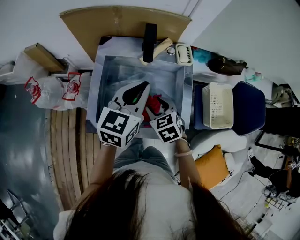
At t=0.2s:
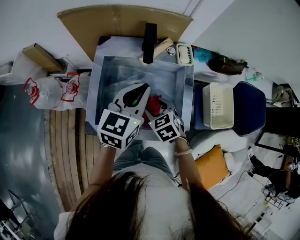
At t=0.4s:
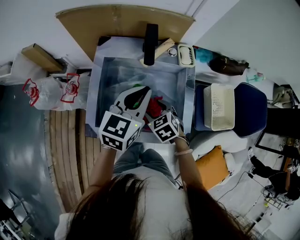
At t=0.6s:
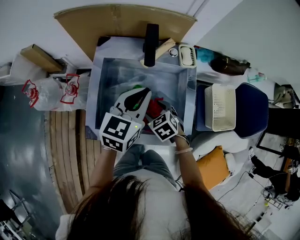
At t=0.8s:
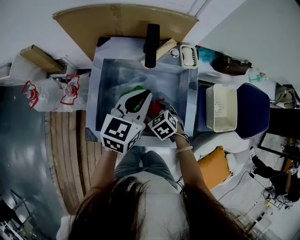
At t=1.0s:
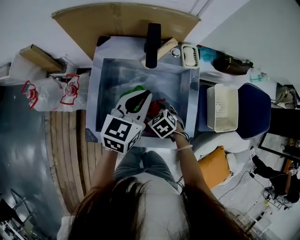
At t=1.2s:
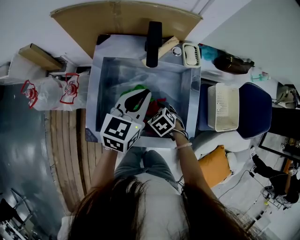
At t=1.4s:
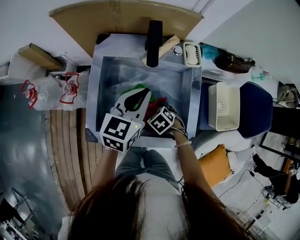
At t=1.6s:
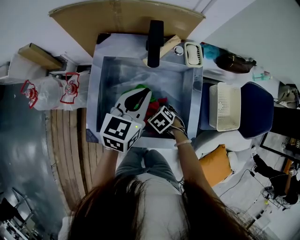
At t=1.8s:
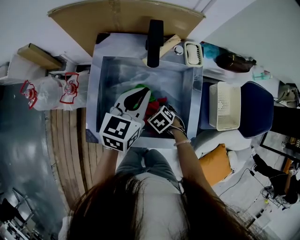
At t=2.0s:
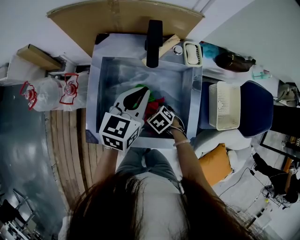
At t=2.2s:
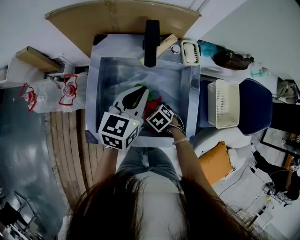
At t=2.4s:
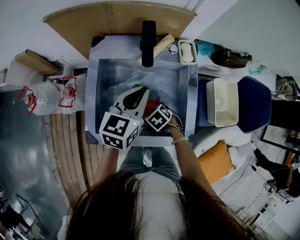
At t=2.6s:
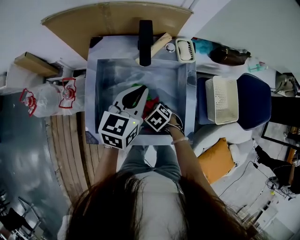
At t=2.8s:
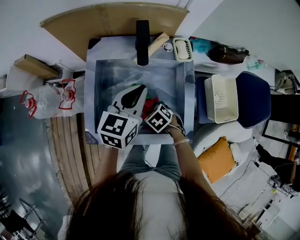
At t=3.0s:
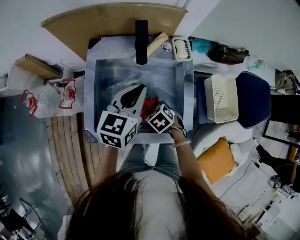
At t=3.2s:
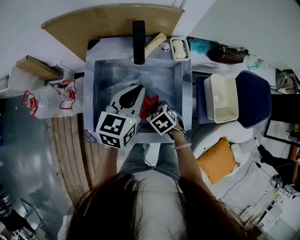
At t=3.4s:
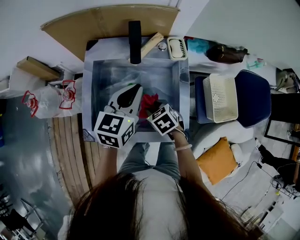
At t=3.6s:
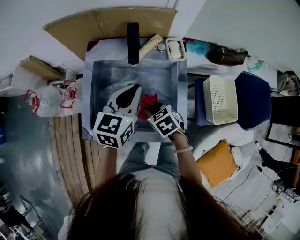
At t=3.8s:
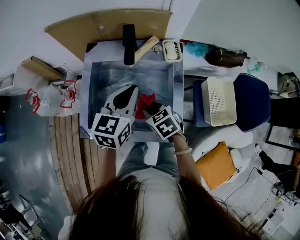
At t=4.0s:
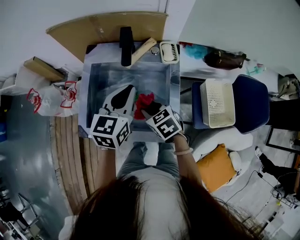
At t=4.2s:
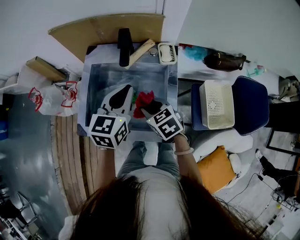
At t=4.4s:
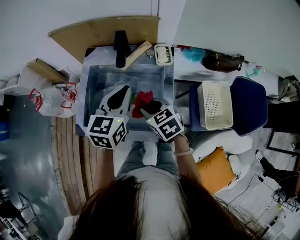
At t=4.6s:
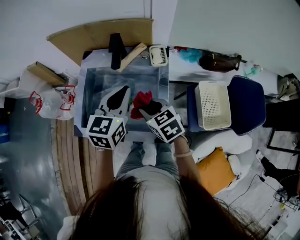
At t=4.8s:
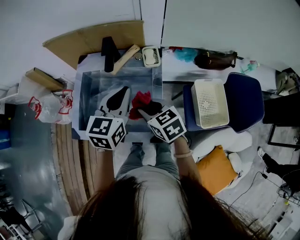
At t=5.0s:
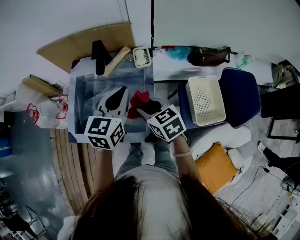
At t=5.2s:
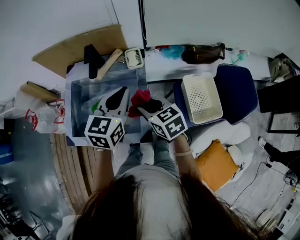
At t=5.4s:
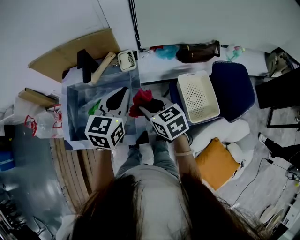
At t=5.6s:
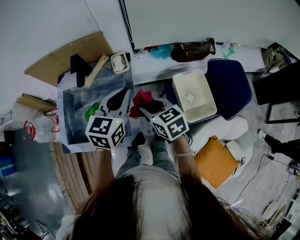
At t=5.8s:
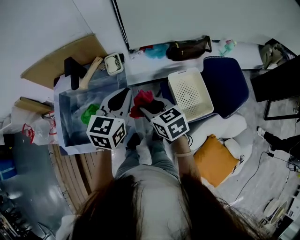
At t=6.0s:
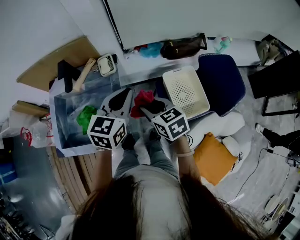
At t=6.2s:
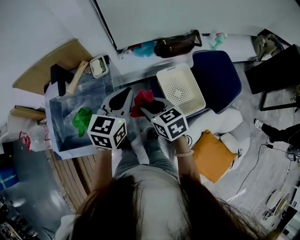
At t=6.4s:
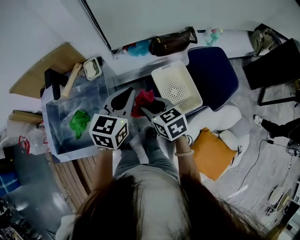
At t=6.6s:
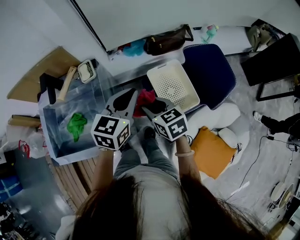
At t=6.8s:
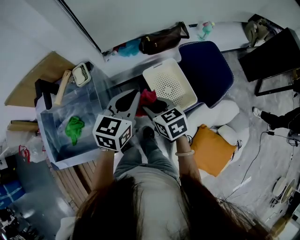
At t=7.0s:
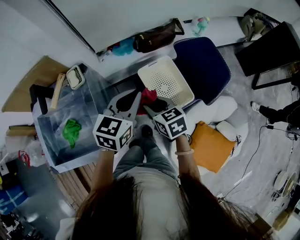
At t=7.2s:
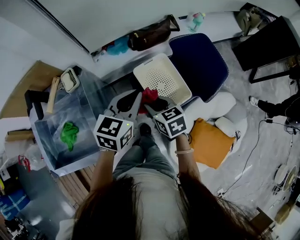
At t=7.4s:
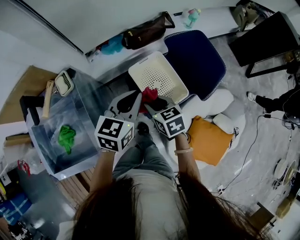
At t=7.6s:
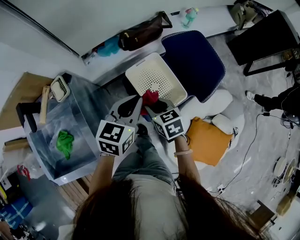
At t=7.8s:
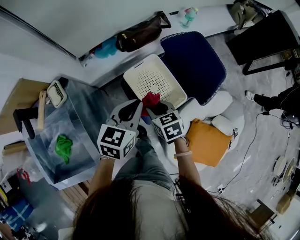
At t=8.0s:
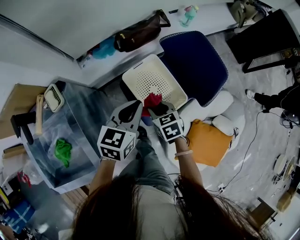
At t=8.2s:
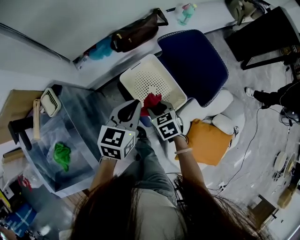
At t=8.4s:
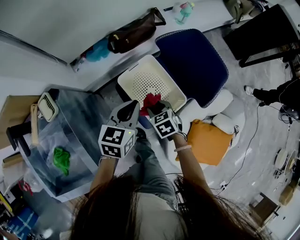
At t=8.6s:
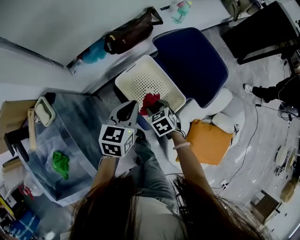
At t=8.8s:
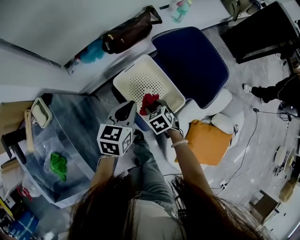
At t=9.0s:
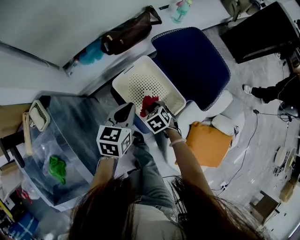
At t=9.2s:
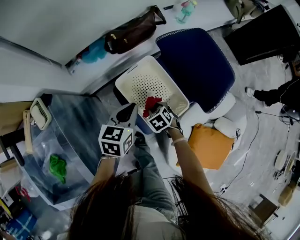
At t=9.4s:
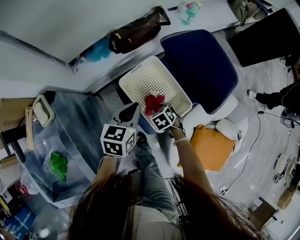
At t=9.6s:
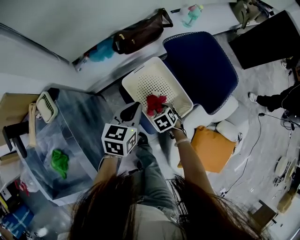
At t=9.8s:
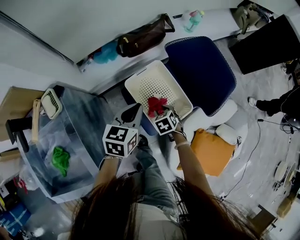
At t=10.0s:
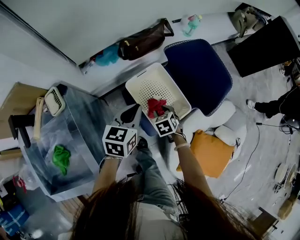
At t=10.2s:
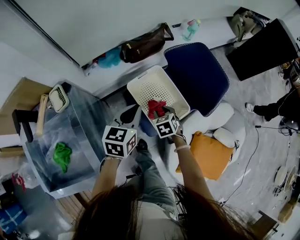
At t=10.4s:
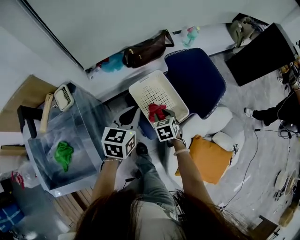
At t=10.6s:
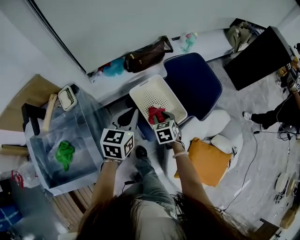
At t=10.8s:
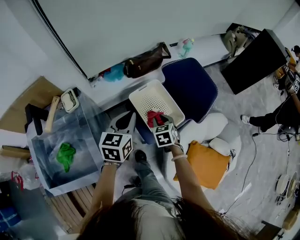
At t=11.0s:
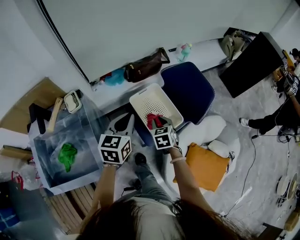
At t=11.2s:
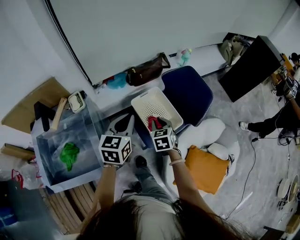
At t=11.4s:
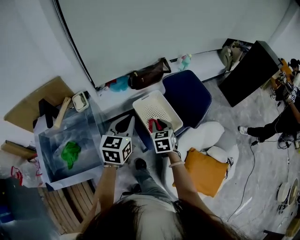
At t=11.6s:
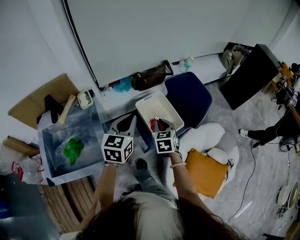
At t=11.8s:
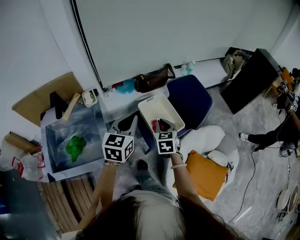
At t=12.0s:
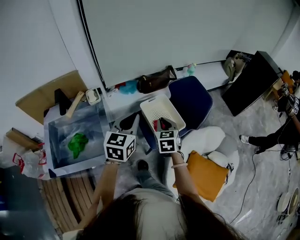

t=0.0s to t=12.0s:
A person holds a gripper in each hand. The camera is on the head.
t=0.0s to t=1.6s: The right gripper is displaced downward by about 15 cm, and turns by about 30 degrees. Meanwhile the left gripper shifts approximately 10 cm downward.
t=1.6s to t=3.0s: The right gripper is displaced upward by roughly 5 cm, and closes.
t=3.0s to t=4.4s: The right gripper goes about 15 cm upward, and rotates about 30 degrees; the left gripper is displaced upward by some 5 cm.
t=4.4s to t=6.0s: The grippers both shift to the right by some 25 cm. The right gripper turns by some 20 degrees.
t=6.0s to t=7.6s: The grippers both shift to the right and downward by some 25 cm. The right gripper changes its angle by about 20 degrees; the left gripper changes its angle by about 20 degrees.
t=7.6s to t=9.0s: Both grippers travel together downward, roughly 20 cm. The right gripper changes its angle by roughly 30 degrees.
t=9.0s to t=10.4s: The grippers both shift upward by about 10 cm.
t=10.4s to t=12.0s: Both grippers travel together upward and backward, roughly 25 cm. The right gripper turns by roughly 30 degrees, and closes up.

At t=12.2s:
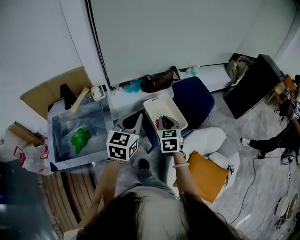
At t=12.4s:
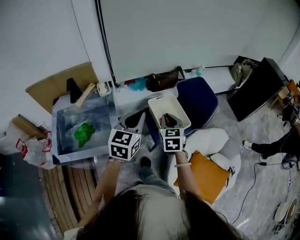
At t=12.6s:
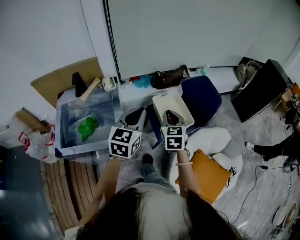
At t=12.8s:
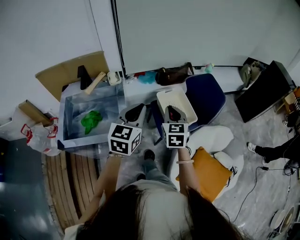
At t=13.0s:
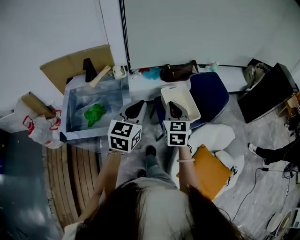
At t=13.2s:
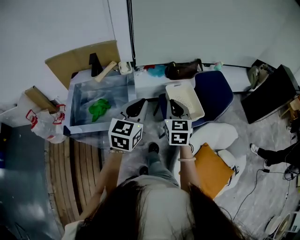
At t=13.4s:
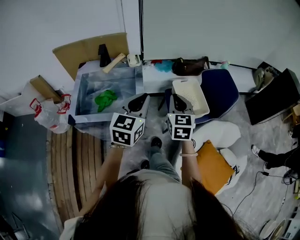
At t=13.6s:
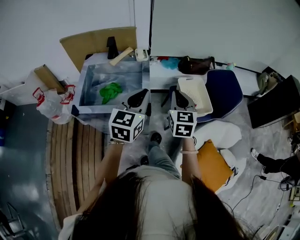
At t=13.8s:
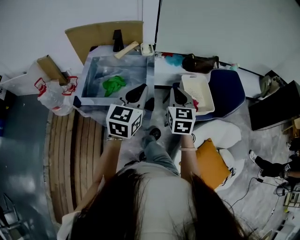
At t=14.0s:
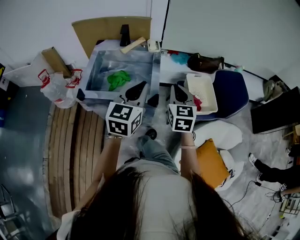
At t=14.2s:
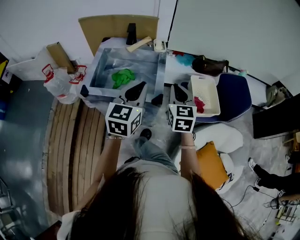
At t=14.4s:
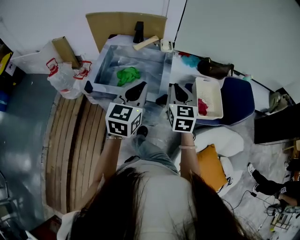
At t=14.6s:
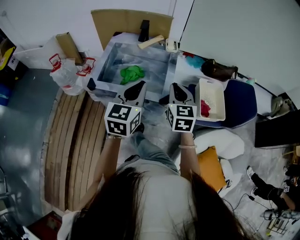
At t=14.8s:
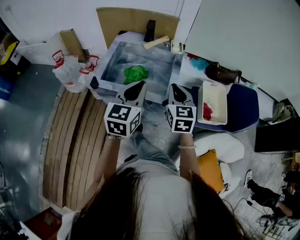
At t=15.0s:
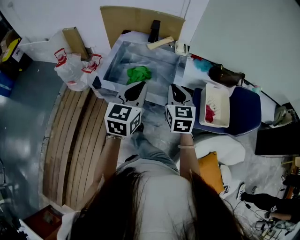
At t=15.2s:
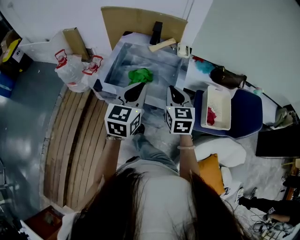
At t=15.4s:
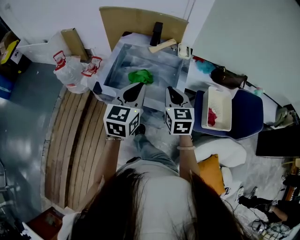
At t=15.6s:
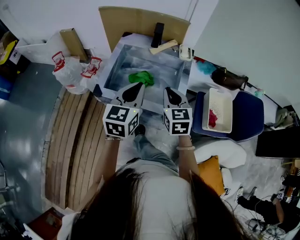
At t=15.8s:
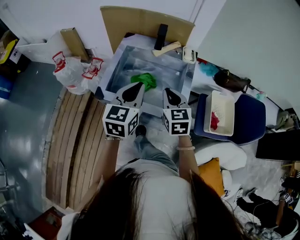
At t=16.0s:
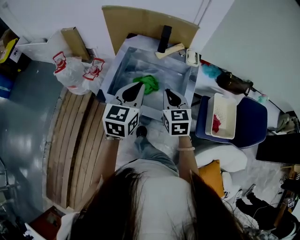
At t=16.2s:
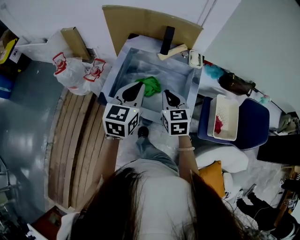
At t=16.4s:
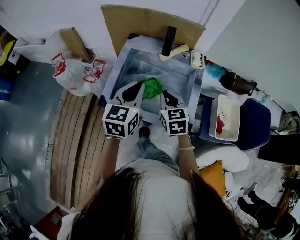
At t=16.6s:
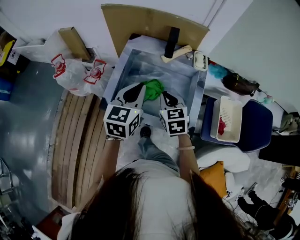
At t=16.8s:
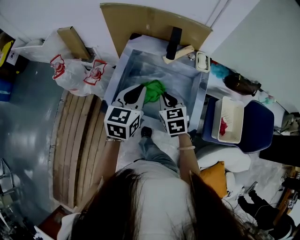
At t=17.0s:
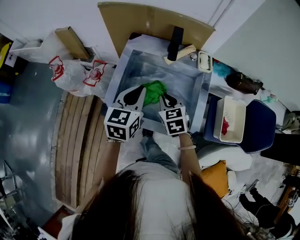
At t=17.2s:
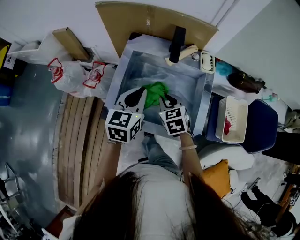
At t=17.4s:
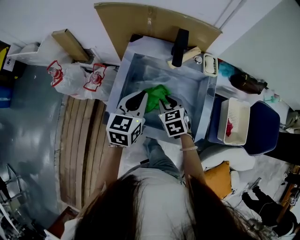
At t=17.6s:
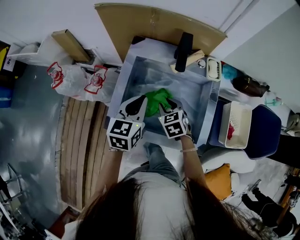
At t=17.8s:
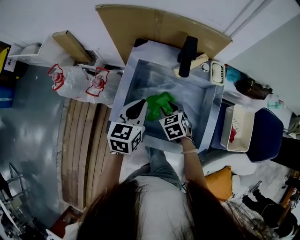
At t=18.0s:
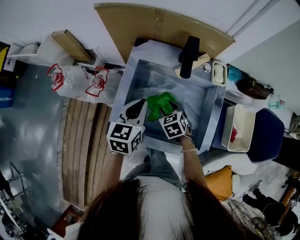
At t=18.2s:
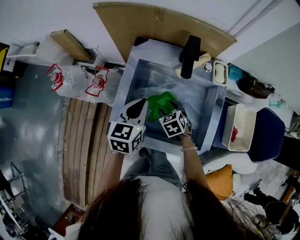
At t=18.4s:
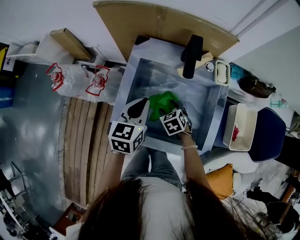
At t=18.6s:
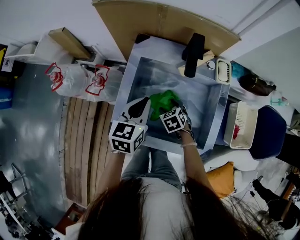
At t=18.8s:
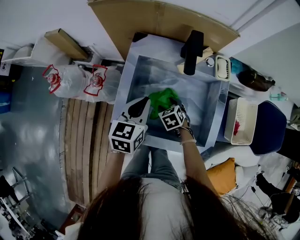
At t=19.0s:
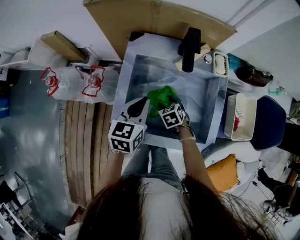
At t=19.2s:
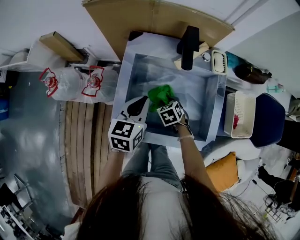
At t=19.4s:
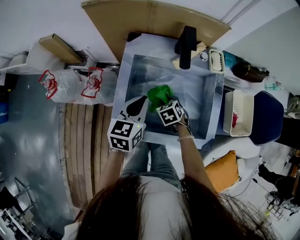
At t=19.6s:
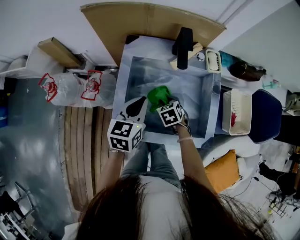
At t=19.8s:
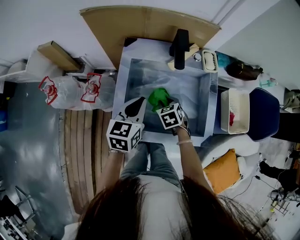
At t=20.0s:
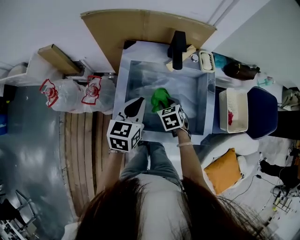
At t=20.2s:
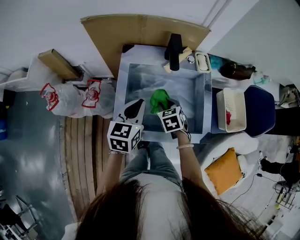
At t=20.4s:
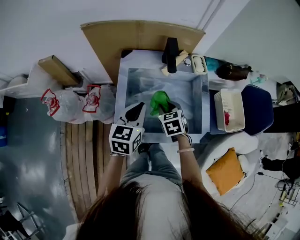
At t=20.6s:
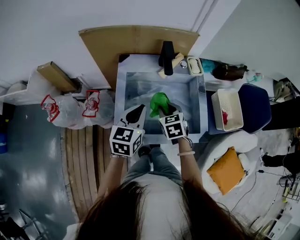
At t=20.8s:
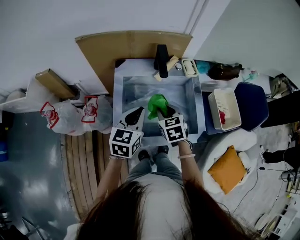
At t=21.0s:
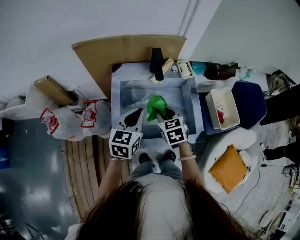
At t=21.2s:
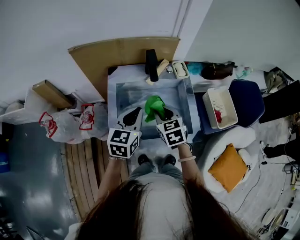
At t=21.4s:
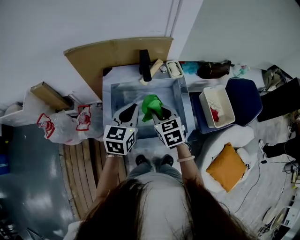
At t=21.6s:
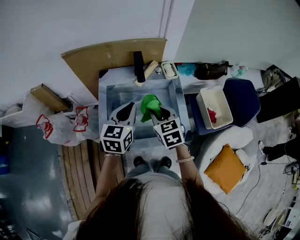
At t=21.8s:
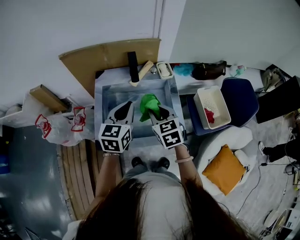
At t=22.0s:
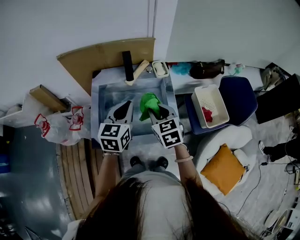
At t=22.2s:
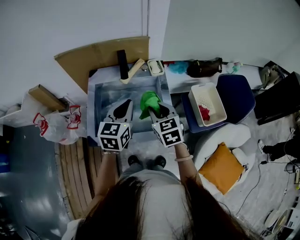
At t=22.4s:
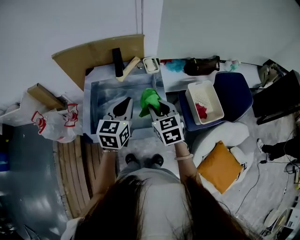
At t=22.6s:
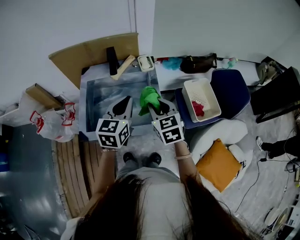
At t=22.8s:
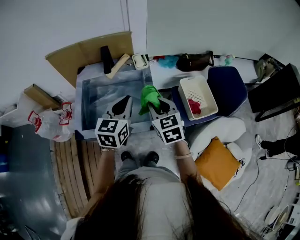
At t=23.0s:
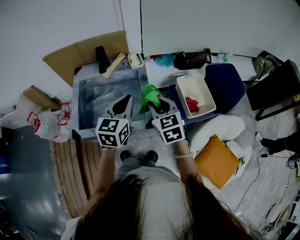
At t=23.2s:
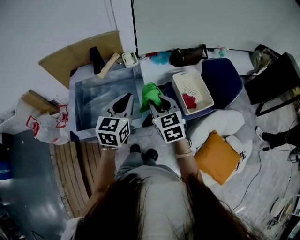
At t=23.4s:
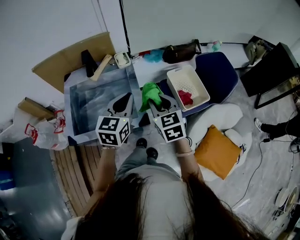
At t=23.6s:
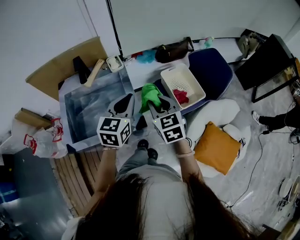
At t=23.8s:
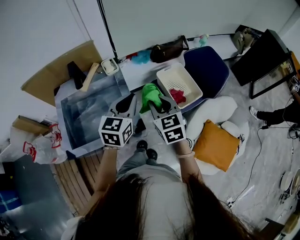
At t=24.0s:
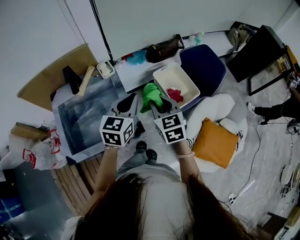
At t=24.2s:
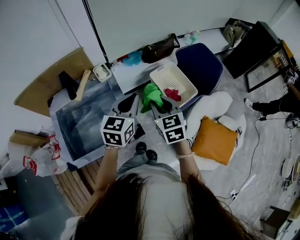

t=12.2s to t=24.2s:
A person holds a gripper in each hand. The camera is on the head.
t=12.2s to t=13.8s: The right gripper shifts some 20 cm to the left, backward and upward, and rotates some 20 degrees; the left gripper travels to the left and backward by roughly 20 cm.
t=13.8s to t=15.2s: The two grippers go approximately 15 cm to the left.
t=15.2s to t=16.6s: The left gripper shifts approximately 15 cm forward and to the left. Meanwhile the right gripper goes some 20 cm forward, to the left and downward.
t=16.6s to t=18.2s: Both grippers travel together downward and forward, some 15 cm. The right gripper swivels some 30 degrees, and opens up.
t=18.2s to t=19.8s: The right gripper closes up.
t=19.8s to t=21.2s: The left gripper heads upward, covering roughly 5 cm. The right gripper goes about 15 cm upward, and rotates roughly 20 degrees.
t=21.2s to t=22.6s: Both grippers move to the right, about 20 cm.
t=22.6s to t=24.2s: Both grippers move to the right, approximately 20 cm. The left gripper changes its angle by approximately 20 degrees, while the right gripper rotates roughly 20 degrees.
